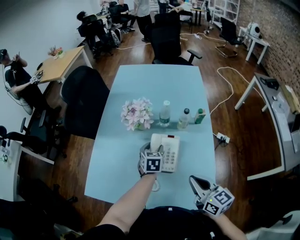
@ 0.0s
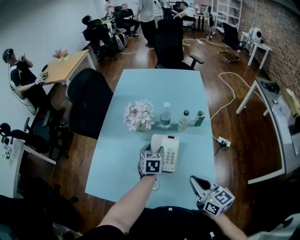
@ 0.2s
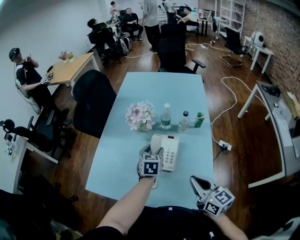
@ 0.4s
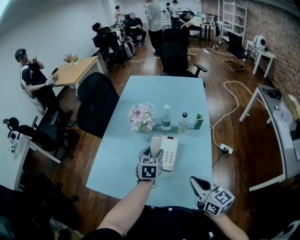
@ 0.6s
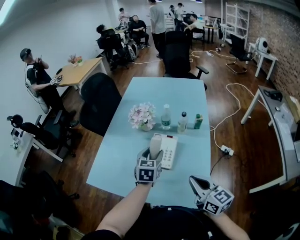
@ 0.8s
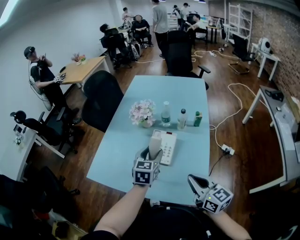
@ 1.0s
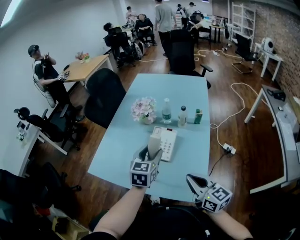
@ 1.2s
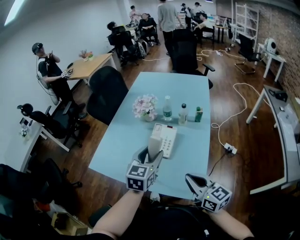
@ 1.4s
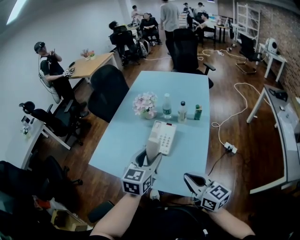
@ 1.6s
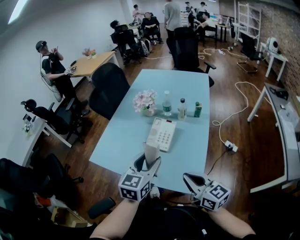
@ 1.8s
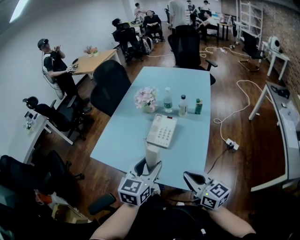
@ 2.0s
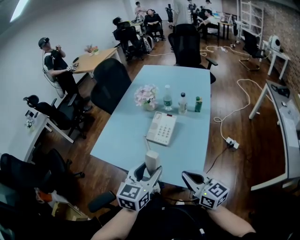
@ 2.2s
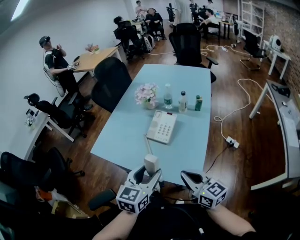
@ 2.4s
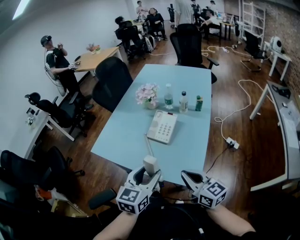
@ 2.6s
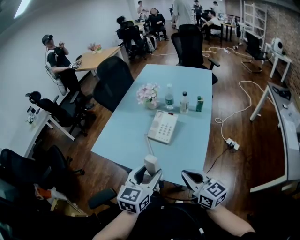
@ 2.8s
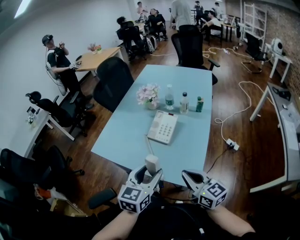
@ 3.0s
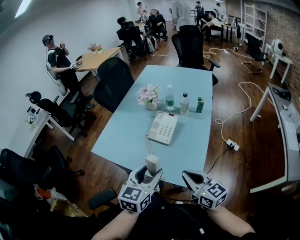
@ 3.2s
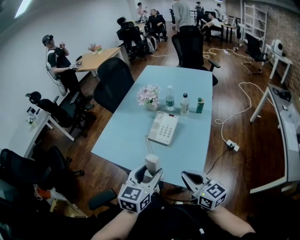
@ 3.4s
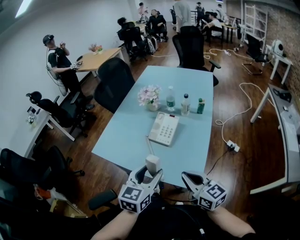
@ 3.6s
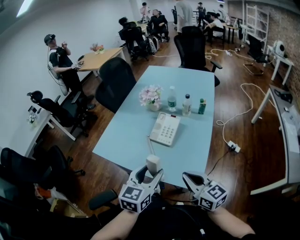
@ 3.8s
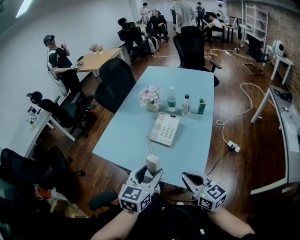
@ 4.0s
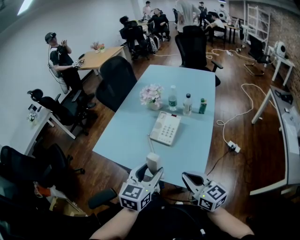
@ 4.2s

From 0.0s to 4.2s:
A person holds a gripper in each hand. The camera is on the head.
From 0.0s to 1.4s: The left gripper moves backward and upward, some 30 cm, and turns by roughly 20 degrees. Meanwhile the right gripper goes about 10 cm backward.
From 1.4s to 2.8s: The left gripper goes about 15 cm backward; the right gripper goes about 5 cm backward.
From 2.8s to 4.2s: The grippers make only small movements.

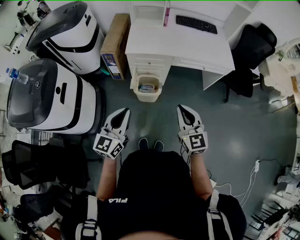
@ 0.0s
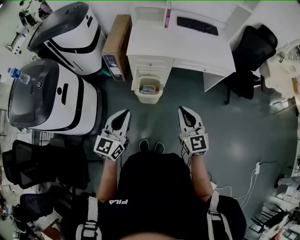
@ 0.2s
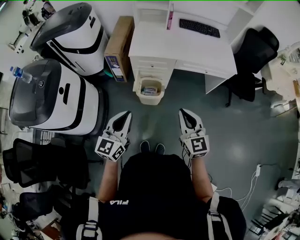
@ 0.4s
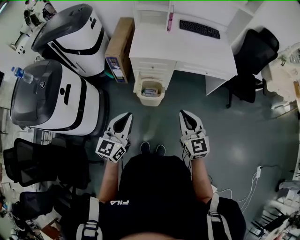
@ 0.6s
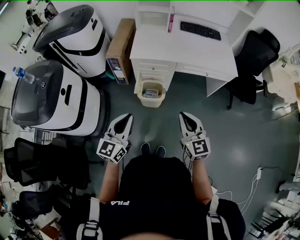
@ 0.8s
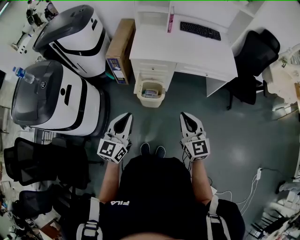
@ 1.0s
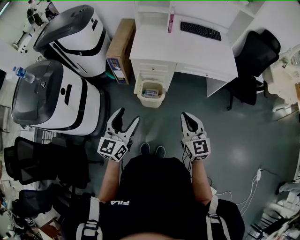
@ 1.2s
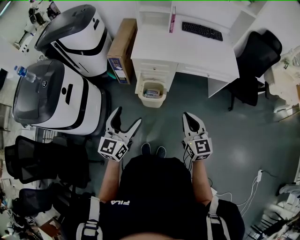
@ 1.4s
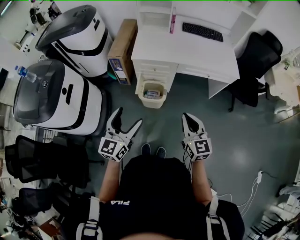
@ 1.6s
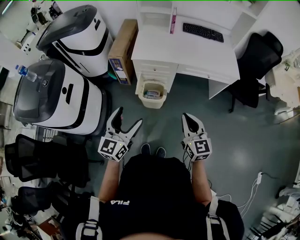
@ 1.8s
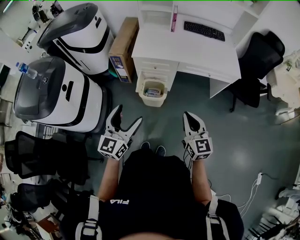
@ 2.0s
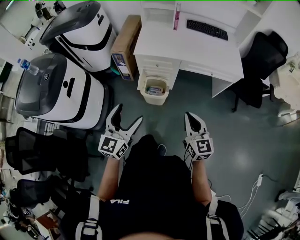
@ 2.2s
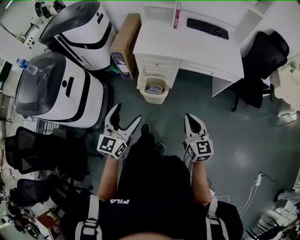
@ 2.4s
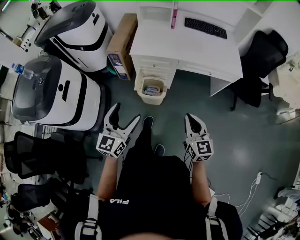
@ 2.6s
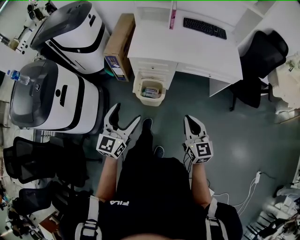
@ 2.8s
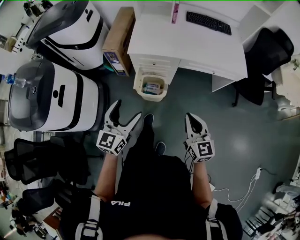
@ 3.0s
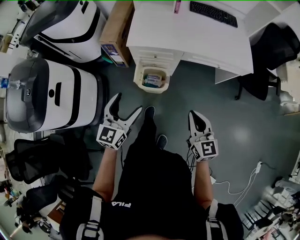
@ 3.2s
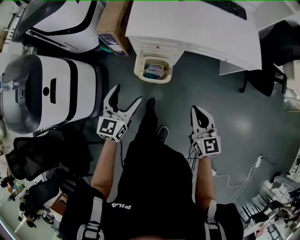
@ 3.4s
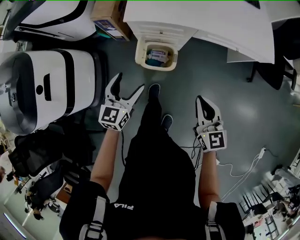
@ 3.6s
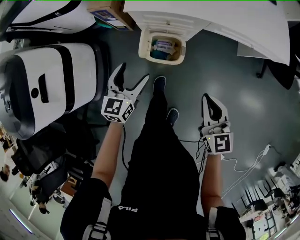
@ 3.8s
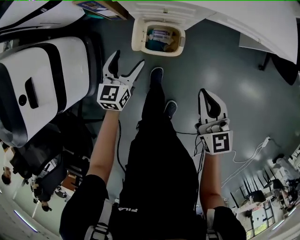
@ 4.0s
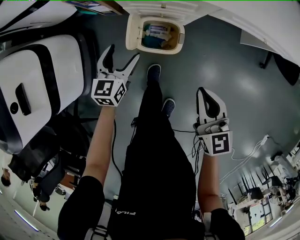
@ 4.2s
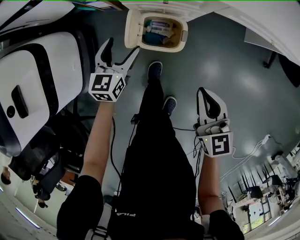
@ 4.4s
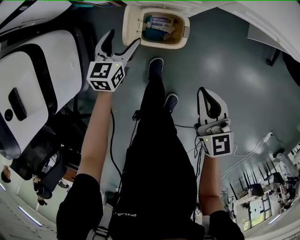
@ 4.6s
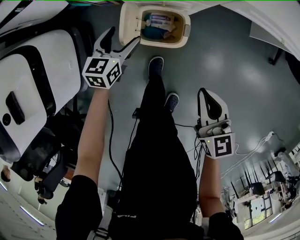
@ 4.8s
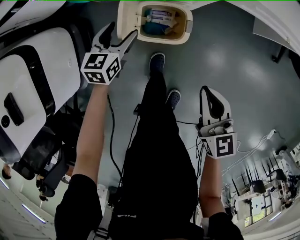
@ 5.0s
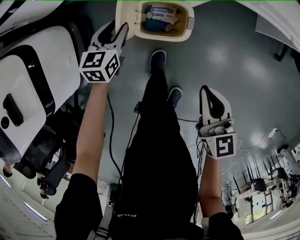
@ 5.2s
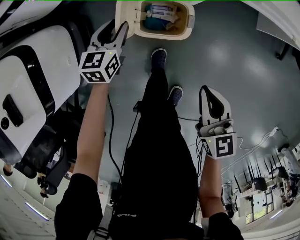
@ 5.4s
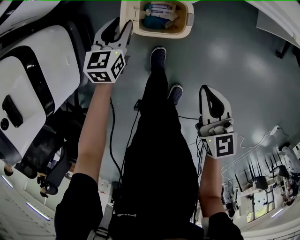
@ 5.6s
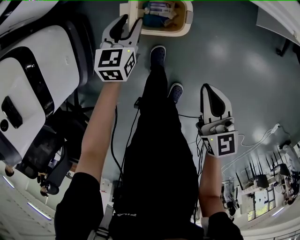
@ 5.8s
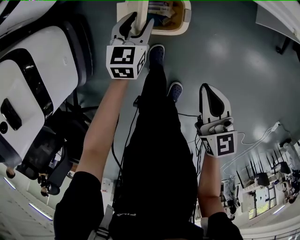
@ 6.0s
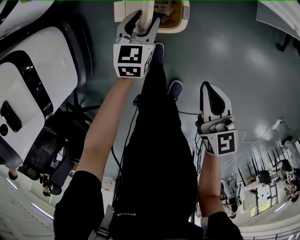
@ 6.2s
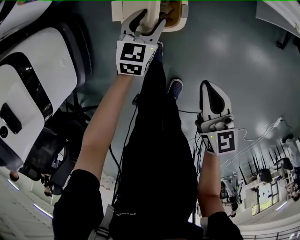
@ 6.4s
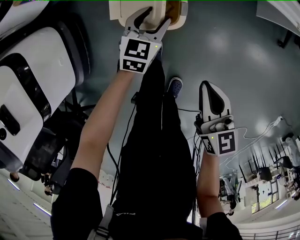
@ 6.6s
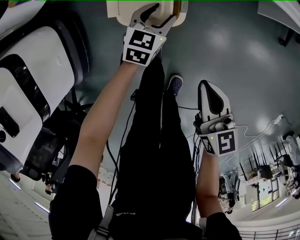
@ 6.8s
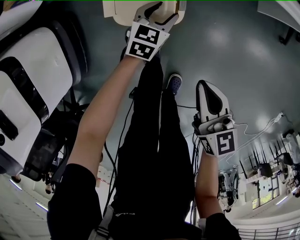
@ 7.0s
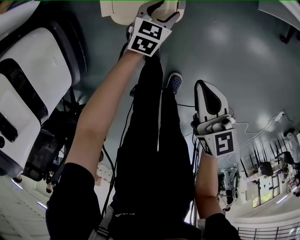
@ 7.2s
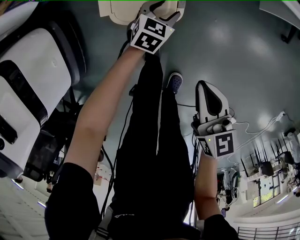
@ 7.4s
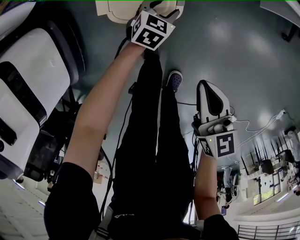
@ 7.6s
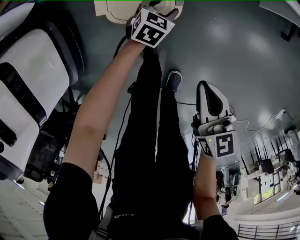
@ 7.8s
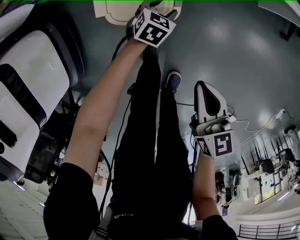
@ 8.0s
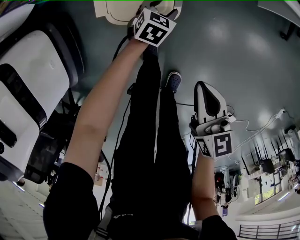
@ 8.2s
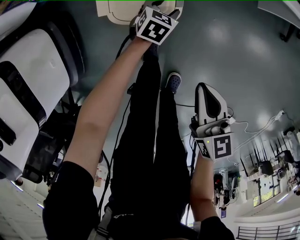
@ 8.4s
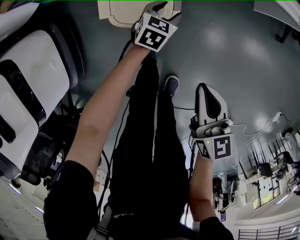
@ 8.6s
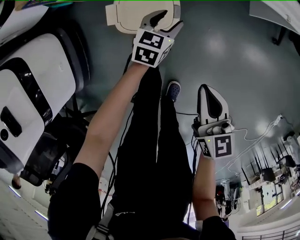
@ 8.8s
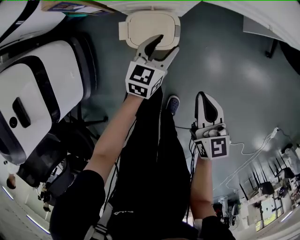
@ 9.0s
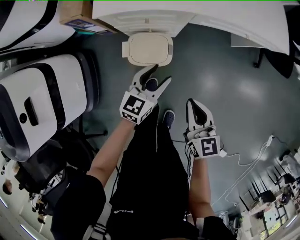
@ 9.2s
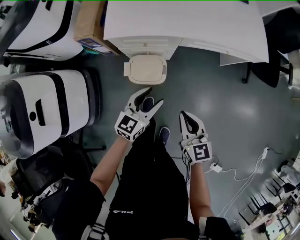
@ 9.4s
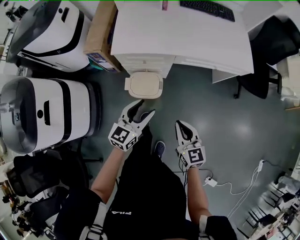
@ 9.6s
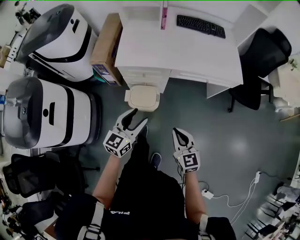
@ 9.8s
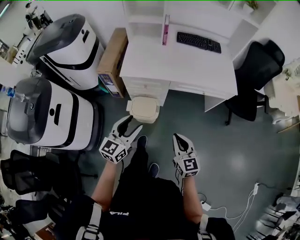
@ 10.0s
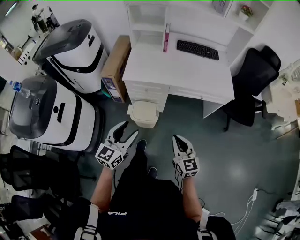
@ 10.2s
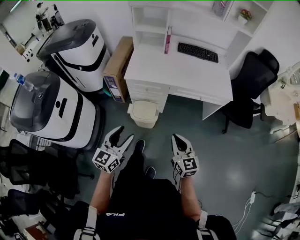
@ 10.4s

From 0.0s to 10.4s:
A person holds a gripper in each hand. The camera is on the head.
From 0.0s to 1.4s: The left gripper opens.
From 1.4s to 3.0s: The grippers both shift forward and downward by about 10 cm.
From 3.0s to 4.4s: Both grippers move downward and forward, roughly 40 cm. The left gripper turns by roughly 20 degrees.
From 4.4s to 6.0s: The left gripper heads downward and to the right, covering roughly 15 cm, and closes up; the right gripper moves downward, roughly 10 cm.
From 6.0s to 7.4s: The left gripper is displaced downward and to the right by roughly 20 cm, and swivels roughly 30 degrees; the right gripper goes some 5 cm downward.
From 7.4s to 9.0s: The left gripper is displaced upward by approximately 25 cm, and turns by roughly 20 degrees. The right gripper moves upward, about 10 cm.
From 9.0s to 10.4s: The two grippers go approximately 50 cm upward and backward. The right gripper changes its angle by roughly 30 degrees, while the left gripper changes its angle by roughly 30 degrees.

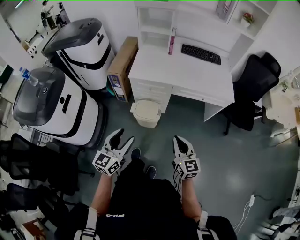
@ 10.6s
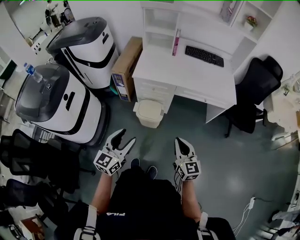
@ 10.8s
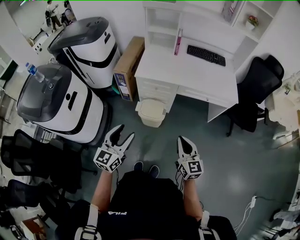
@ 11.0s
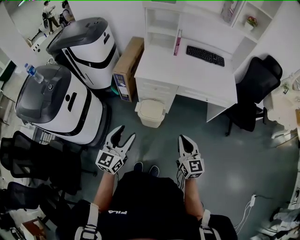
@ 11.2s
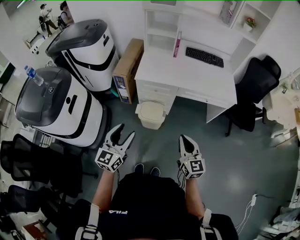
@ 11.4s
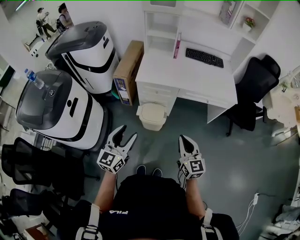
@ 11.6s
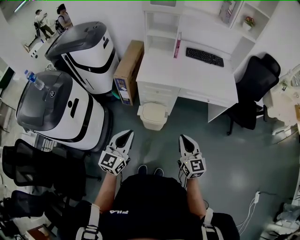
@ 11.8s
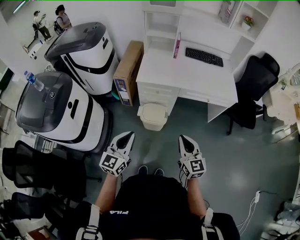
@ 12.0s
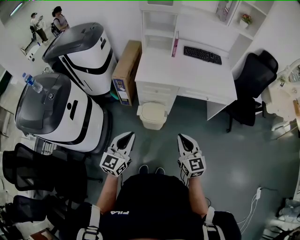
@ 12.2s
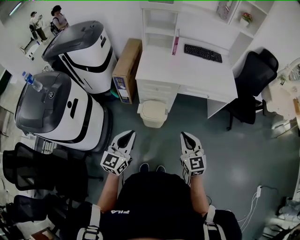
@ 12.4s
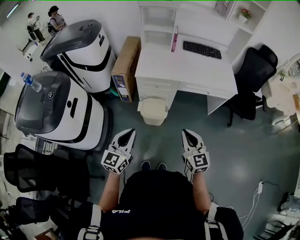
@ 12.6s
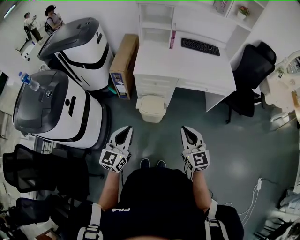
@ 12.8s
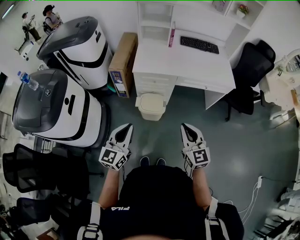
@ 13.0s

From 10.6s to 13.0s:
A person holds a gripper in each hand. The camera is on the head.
From 10.6s to 11.8s: The two grippers go some 5 cm to the left. The left gripper closes.
From 11.8s to 13.0s: There are only small adjustments of the grippers.

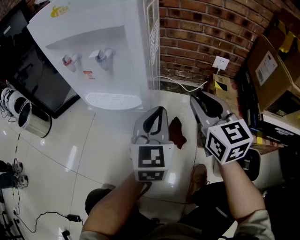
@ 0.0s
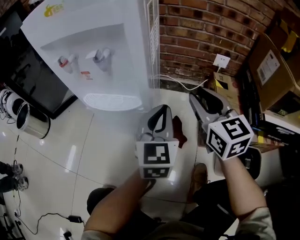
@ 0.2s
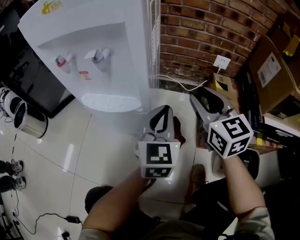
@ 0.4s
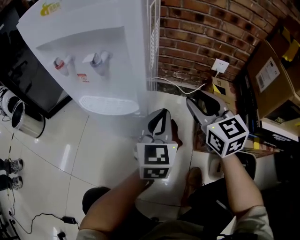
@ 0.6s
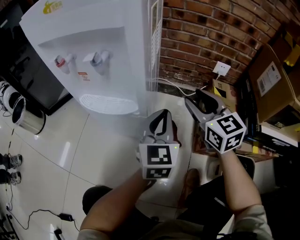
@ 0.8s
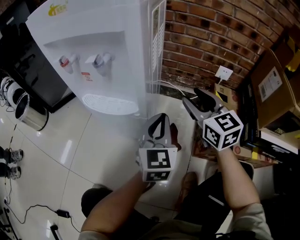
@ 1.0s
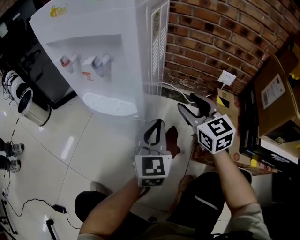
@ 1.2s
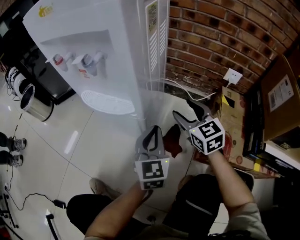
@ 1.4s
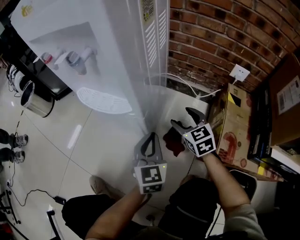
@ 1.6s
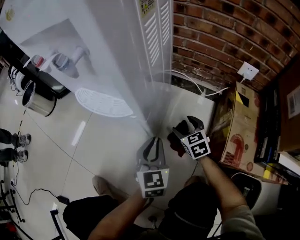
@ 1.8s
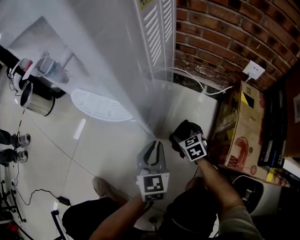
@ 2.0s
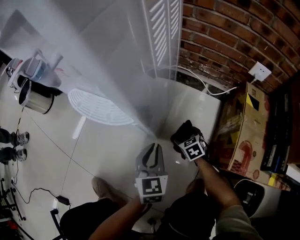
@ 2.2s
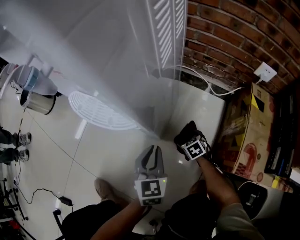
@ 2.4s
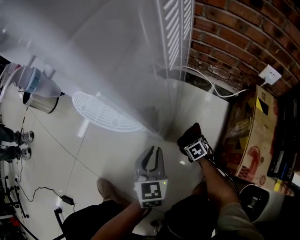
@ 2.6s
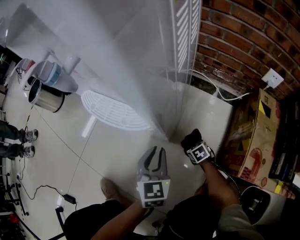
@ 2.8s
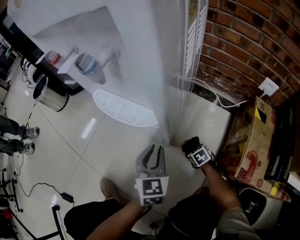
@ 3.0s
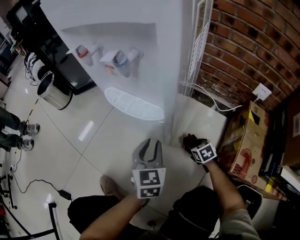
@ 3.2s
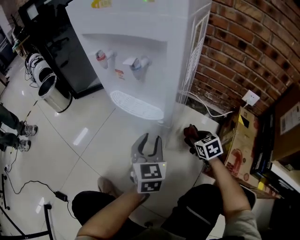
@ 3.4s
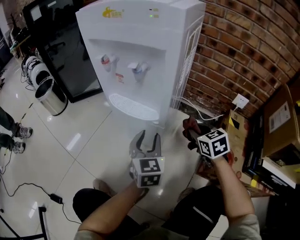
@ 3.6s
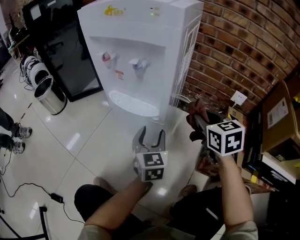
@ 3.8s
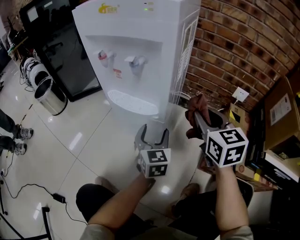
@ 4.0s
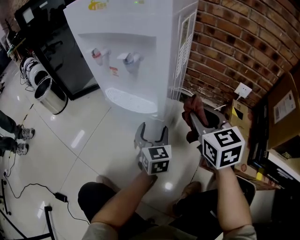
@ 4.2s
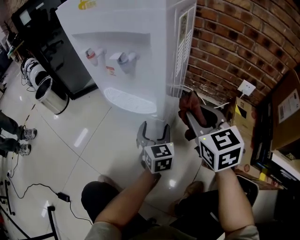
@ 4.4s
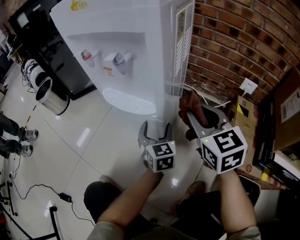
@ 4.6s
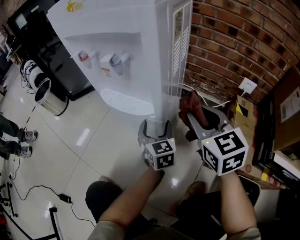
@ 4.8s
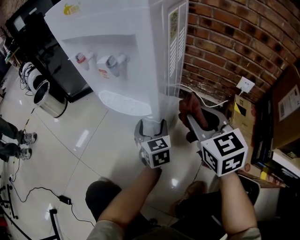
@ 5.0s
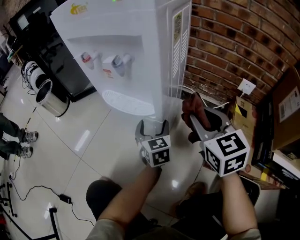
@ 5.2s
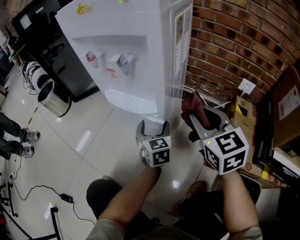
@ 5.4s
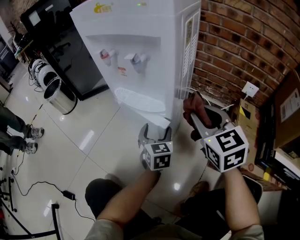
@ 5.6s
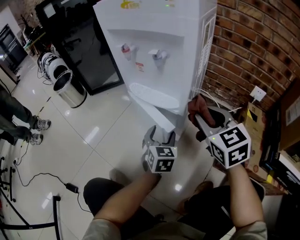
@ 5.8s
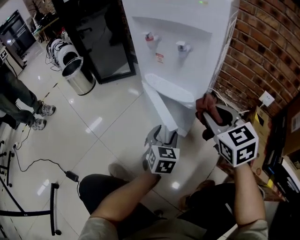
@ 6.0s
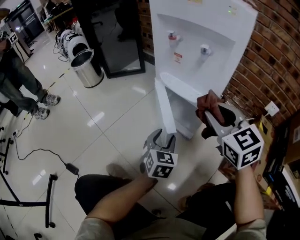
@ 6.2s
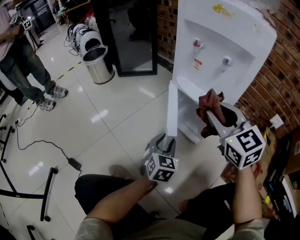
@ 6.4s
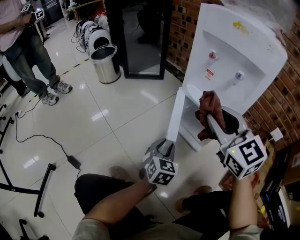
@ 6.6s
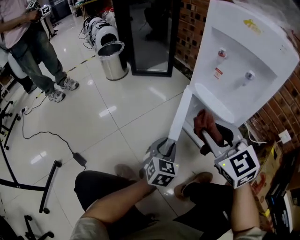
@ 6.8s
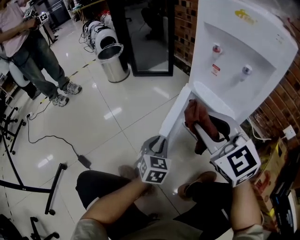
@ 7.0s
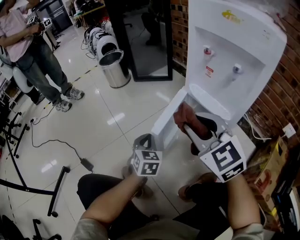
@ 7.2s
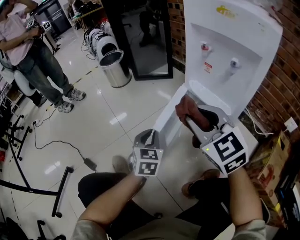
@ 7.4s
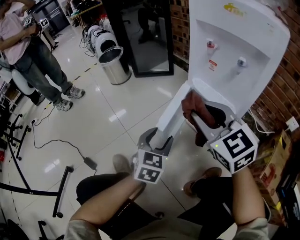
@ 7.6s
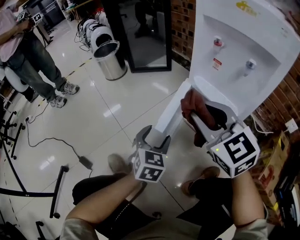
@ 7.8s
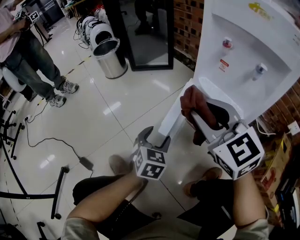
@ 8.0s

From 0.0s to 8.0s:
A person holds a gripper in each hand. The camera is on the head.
From 0.0s to 1.6s: The right gripper is displaced downward by approximately 25 cm, changes its angle by approximately 30 degrees, and opens. Meanwhile the left gripper goes some 15 cm downward, and changes its angle by roughly 20 degrees.
From 1.6s to 3.2s: The left gripper goes some 10 cm to the left, and travels downward and back again, approximately 10 cm each way. Meanwhile the right gripper travels downward by some 15 cm, swivels approximately 30 degrees, and closes up.
From 3.2s to 4.8s: The left gripper moves some 5 cm upward and comes back, and opens its fingers. The right gripper travels upward by about 35 cm, and angles its fingers upward, by about 40 degrees.
From 4.8s to 6.4s: The left gripper shifts approximately 20 cm to the left and backward, and closes its fingers; the right gripper travels to the left by roughly 20 cm, and swivels about 30 degrees.
From 6.4s to 8.0s: Both grippers move to the left and forward, approximately 10 cm. The left gripper opens up.
